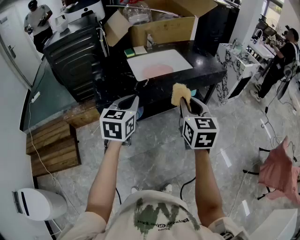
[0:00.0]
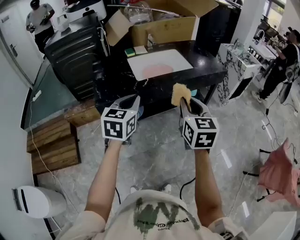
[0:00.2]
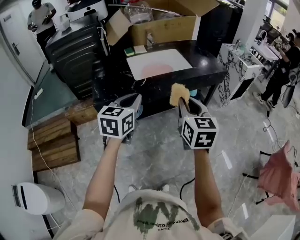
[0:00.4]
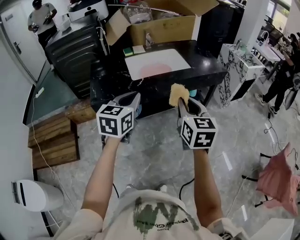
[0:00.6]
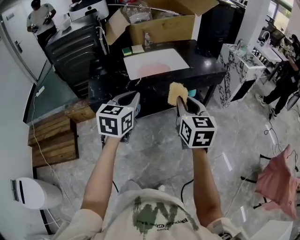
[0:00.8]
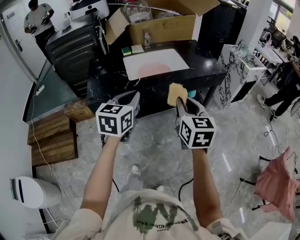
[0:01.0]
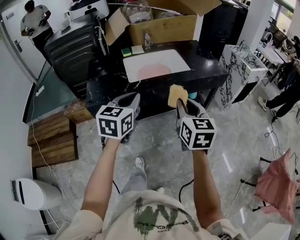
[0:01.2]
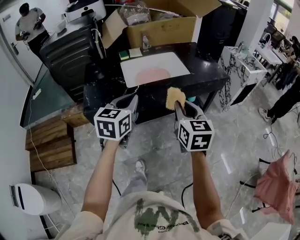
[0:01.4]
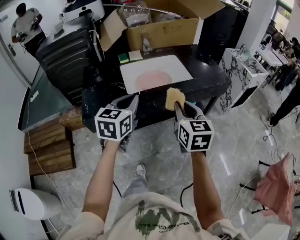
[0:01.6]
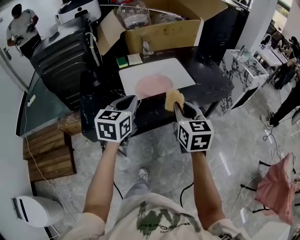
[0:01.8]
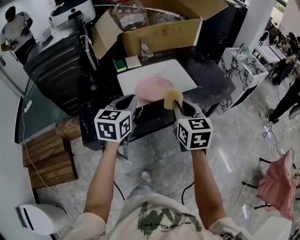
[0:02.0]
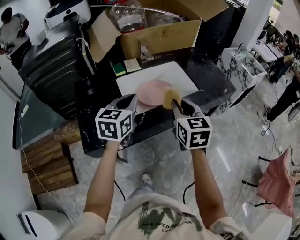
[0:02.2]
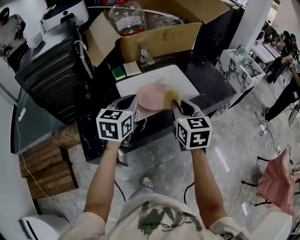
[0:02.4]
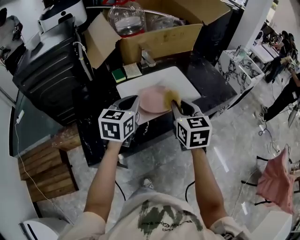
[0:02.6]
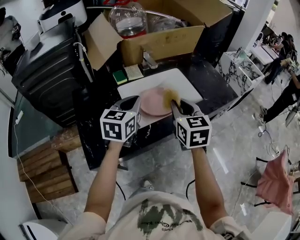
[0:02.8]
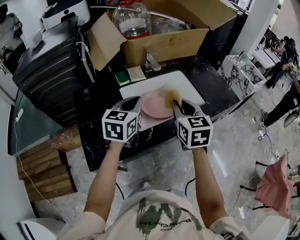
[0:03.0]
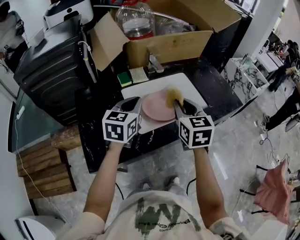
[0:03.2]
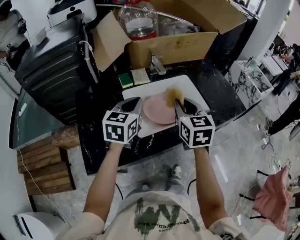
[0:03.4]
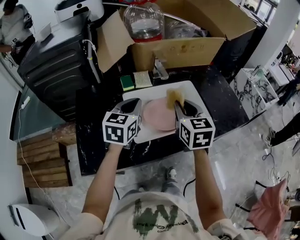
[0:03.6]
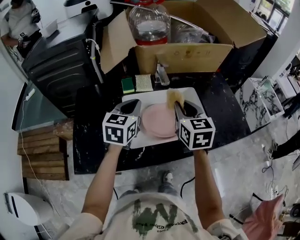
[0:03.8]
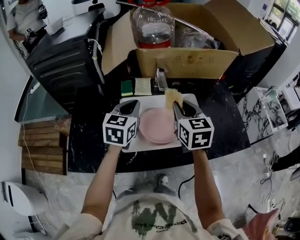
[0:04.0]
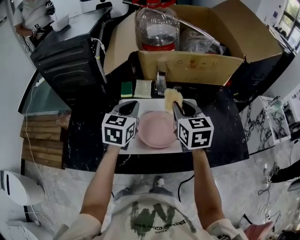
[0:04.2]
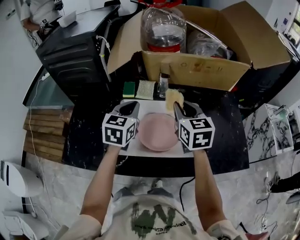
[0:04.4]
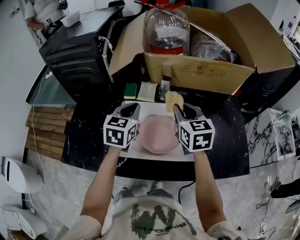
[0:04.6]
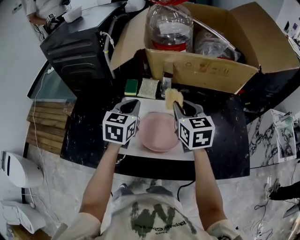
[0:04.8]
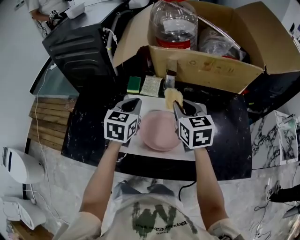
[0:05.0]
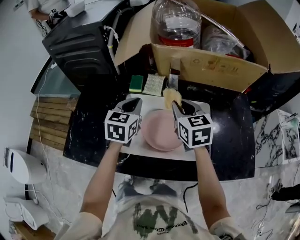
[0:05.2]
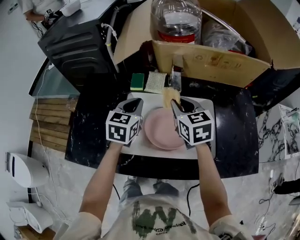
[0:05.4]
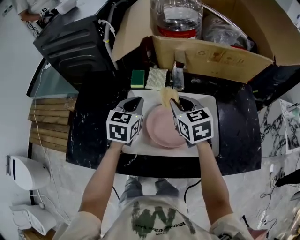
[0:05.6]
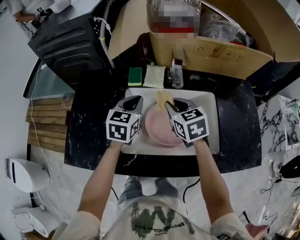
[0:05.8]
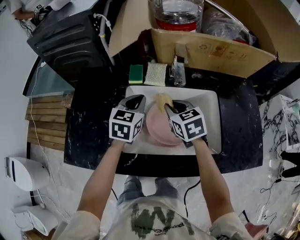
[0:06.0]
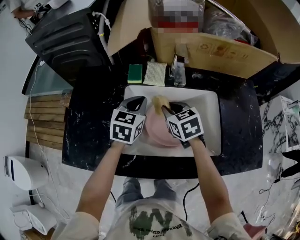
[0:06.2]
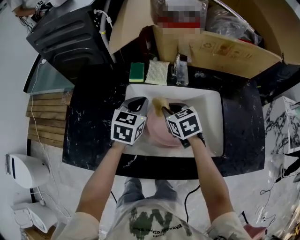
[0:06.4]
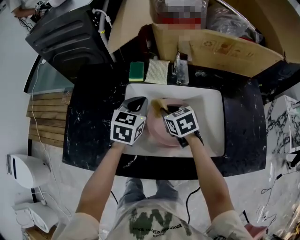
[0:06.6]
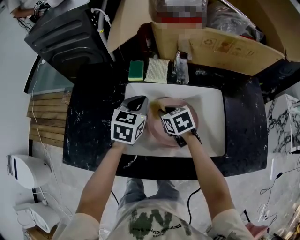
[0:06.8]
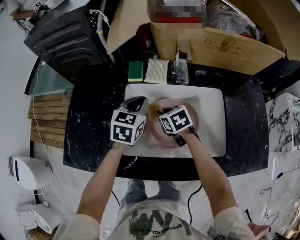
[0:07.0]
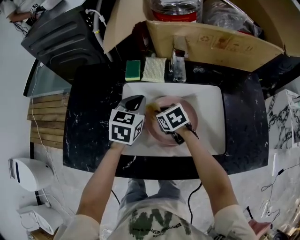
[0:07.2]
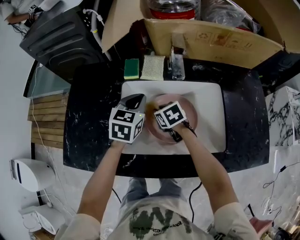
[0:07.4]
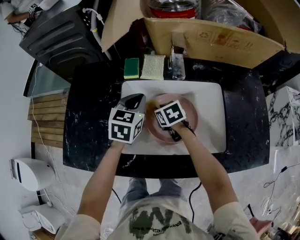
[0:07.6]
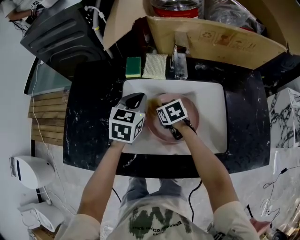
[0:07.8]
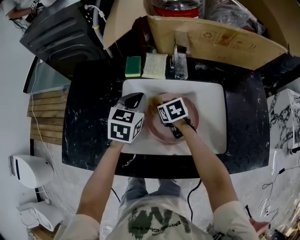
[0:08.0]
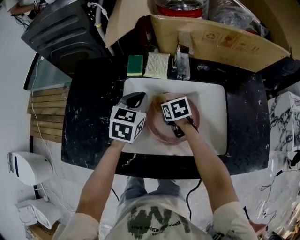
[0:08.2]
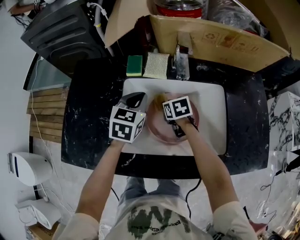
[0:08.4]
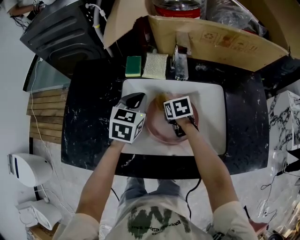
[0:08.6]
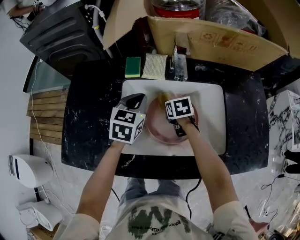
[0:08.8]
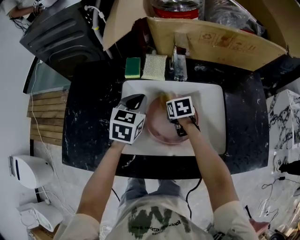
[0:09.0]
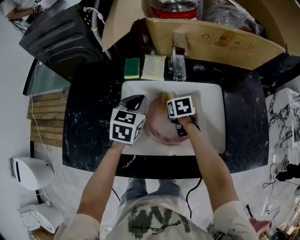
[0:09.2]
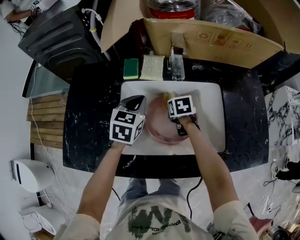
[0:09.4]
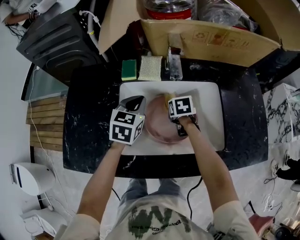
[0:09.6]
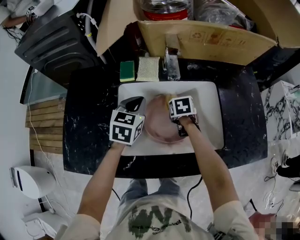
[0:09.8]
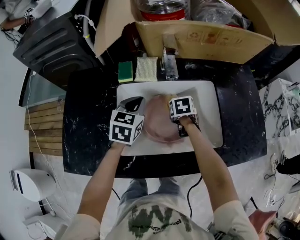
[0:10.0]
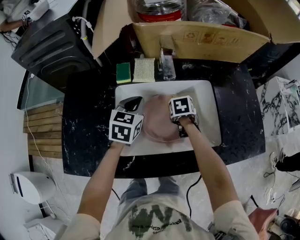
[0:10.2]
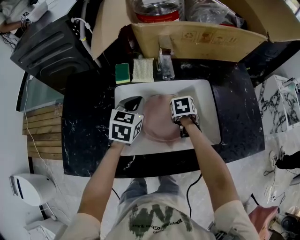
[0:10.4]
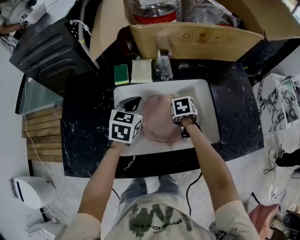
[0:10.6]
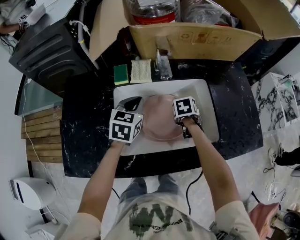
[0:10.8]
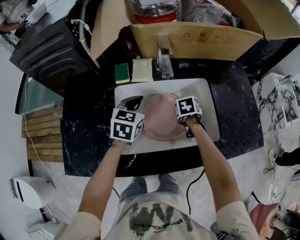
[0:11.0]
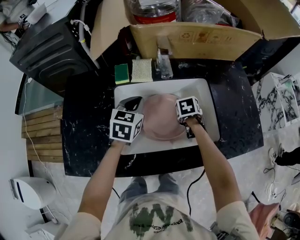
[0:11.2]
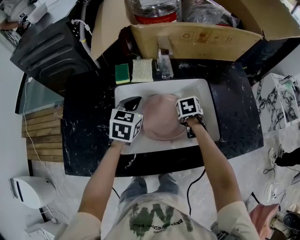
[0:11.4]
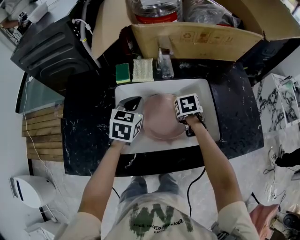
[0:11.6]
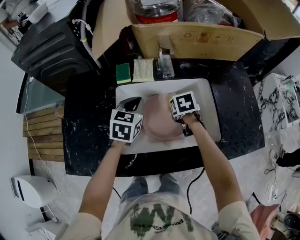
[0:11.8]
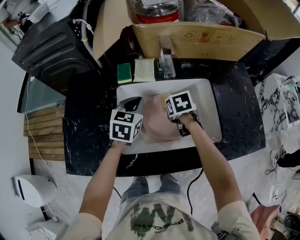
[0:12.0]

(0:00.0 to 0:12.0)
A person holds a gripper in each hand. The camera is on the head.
0:00.0 - 0:01.6: The left gripper shifts roughly 15 cm forward and to the right, while the right gripper moves forward, roughly 10 cm.
0:01.6 - 0:03.0: The two grippers go about 25 cm forward and to the left.
0:03.0 - 0:04.4: The left gripper ends up about 15 cm from where it was, and turns by approximately 30 degrees. Meanwhile the right gripper ends up about 20 cm from where it was, and turns by roughly 30 degrees.
0:04.4 - 0:06.0: The left gripper heads downward, covering roughly 10 cm, while the right gripper travels downward and to the left by roughly 15 cm, and turns by about 20 degrees.
0:06.0 - 0:07.6: The right gripper travels downward by about 15 cm, and changes its angle by some 20 degrees.
0:07.6 - 0:09.0: The right gripper travels to the right by some 5 cm.
0:09.0 - 0:10.4: The right gripper heads to the right, covering approximately 10 cm.
0:10.4 - 0:12.0: The right gripper goes some 5 cm upward.

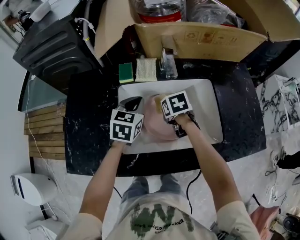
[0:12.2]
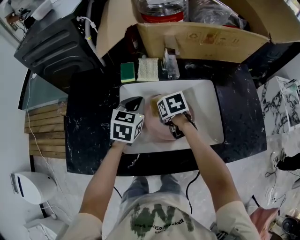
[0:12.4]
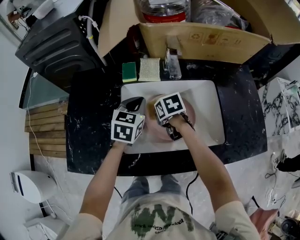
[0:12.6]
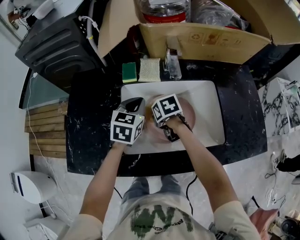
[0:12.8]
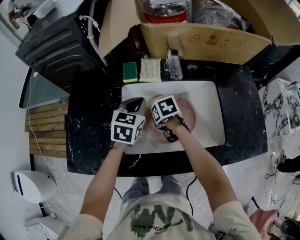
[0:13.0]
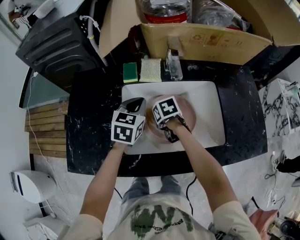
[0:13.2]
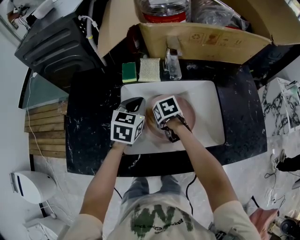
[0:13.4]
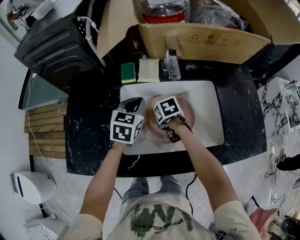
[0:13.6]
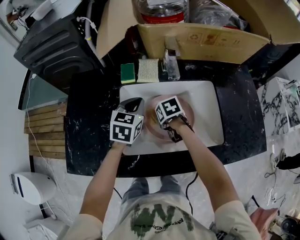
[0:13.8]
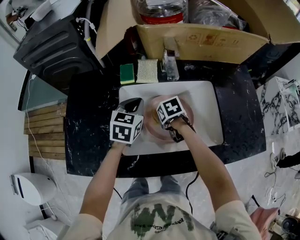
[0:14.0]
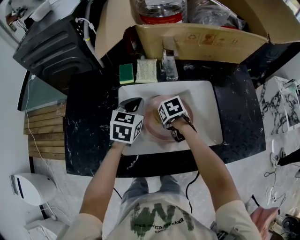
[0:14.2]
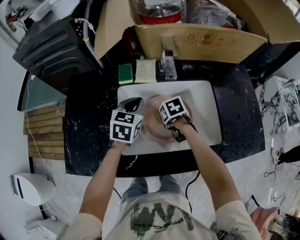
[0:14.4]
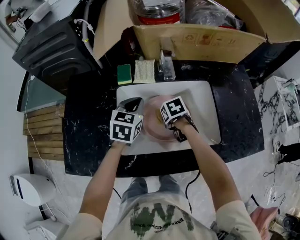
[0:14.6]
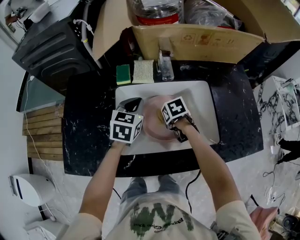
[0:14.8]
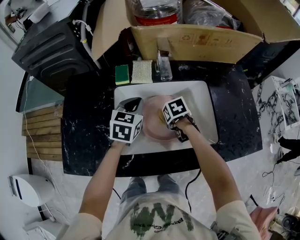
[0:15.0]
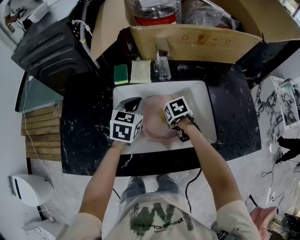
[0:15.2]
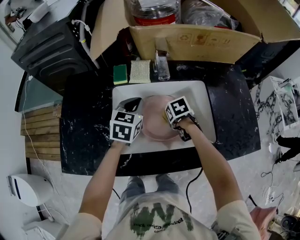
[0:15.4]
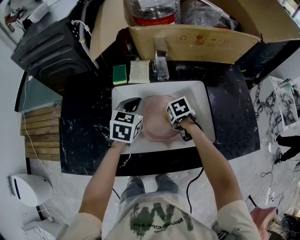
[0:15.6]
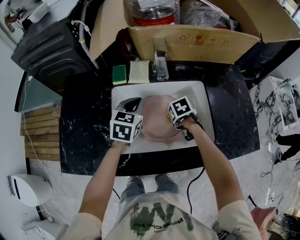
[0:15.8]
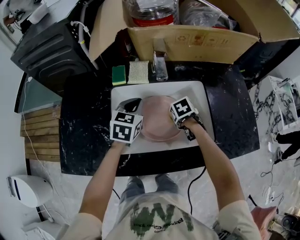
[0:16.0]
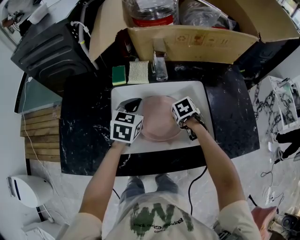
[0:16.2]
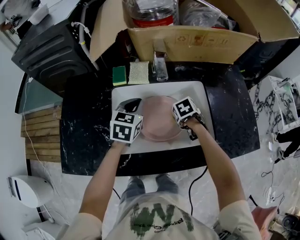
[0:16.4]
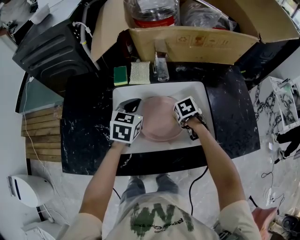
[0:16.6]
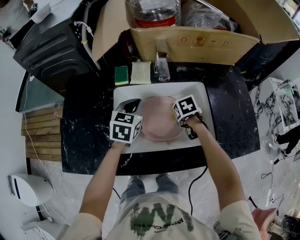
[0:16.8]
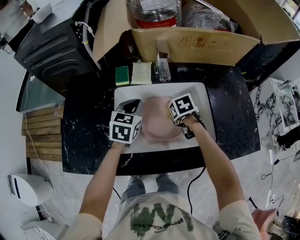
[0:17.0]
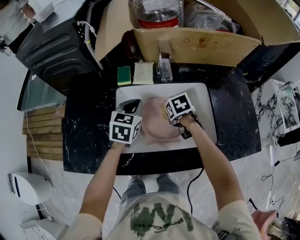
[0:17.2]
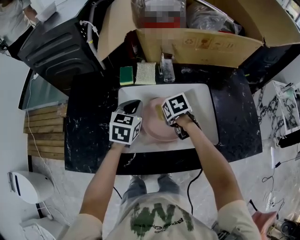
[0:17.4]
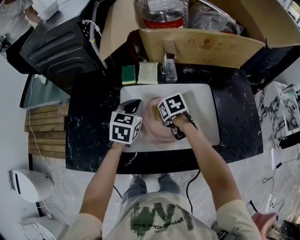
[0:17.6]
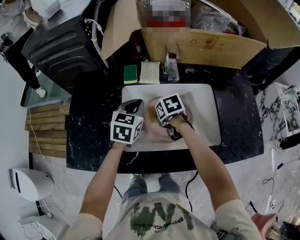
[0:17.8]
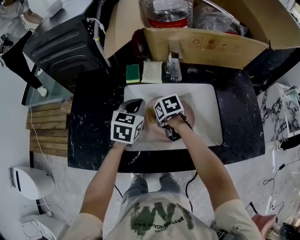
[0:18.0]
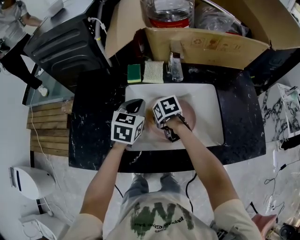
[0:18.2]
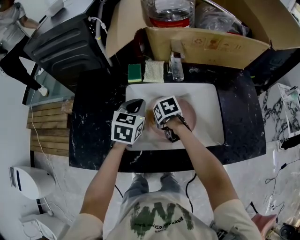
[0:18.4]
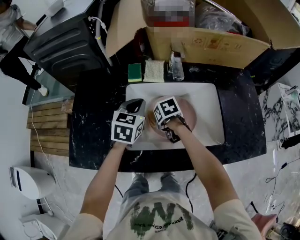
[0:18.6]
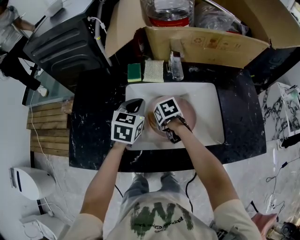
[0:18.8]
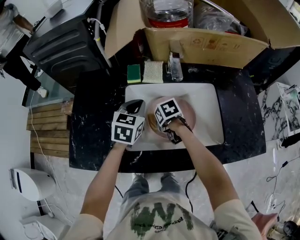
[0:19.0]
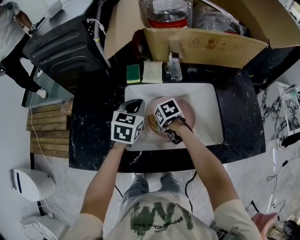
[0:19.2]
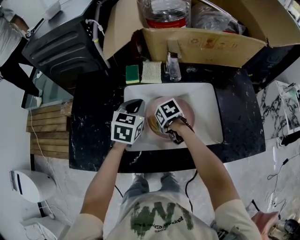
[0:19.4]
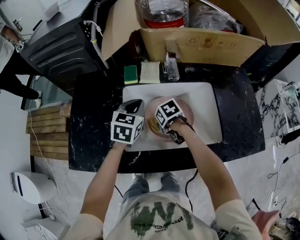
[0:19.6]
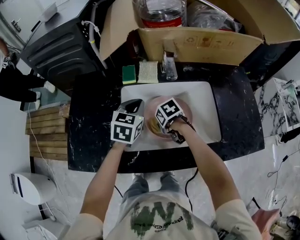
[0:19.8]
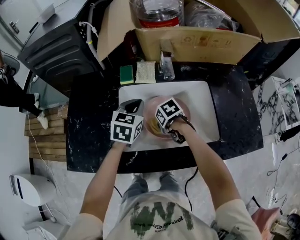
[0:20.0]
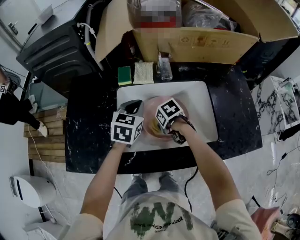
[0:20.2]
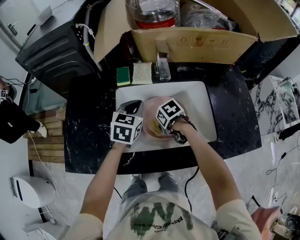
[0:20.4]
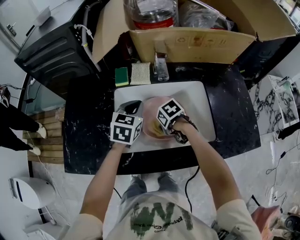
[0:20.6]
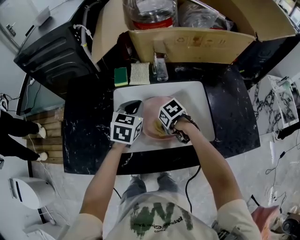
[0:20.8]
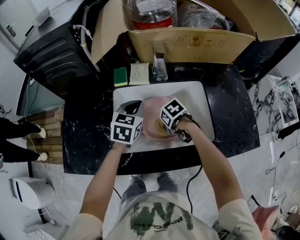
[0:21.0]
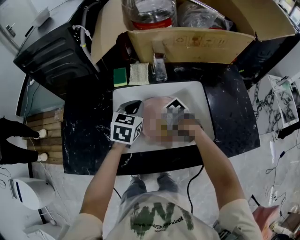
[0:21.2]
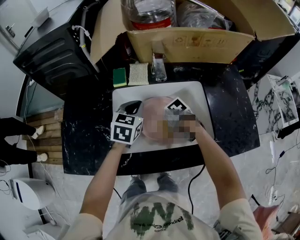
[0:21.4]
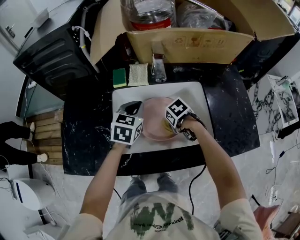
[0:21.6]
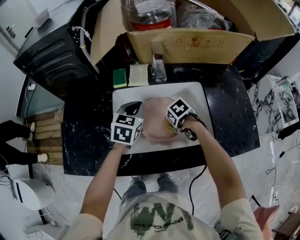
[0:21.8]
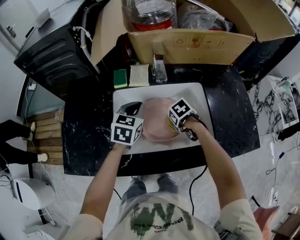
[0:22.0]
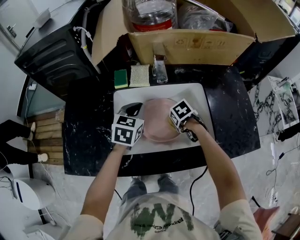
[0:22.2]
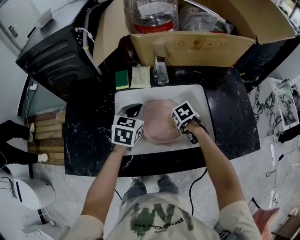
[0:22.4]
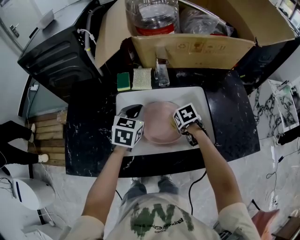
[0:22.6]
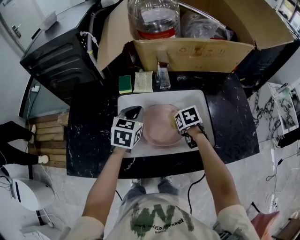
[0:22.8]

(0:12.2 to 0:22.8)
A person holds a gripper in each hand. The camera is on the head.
0:12.2 - 0:13.8: The right gripper goes roughly 5 cm downward.
0:13.8 - 0:15.2: The right gripper travels to the right by about 5 cm.
0:15.2 - 0:16.8: The right gripper ends up roughly 5 cm from where it was.
0:16.8 - 0:18.2: The right gripper shifts roughly 15 cm to the left.
0:18.2 - 0:19.8: The right gripper shifts by roughly 5 cm.
0:19.8 - 0:21.2: The right gripper is displaced to the right by about 5 cm.
0:21.2 - 0:22.8: The right gripper shifts by roughly 10 cm, and rotates roughly 30 degrees.

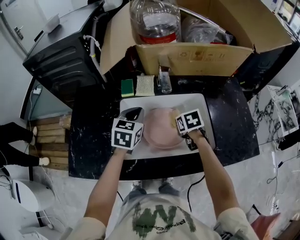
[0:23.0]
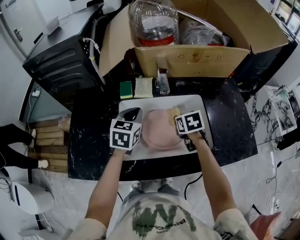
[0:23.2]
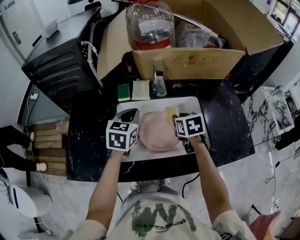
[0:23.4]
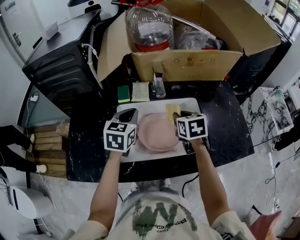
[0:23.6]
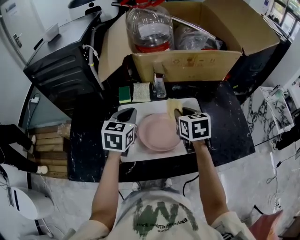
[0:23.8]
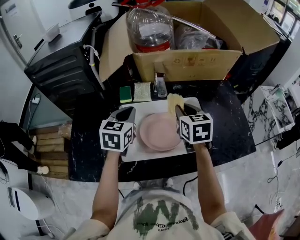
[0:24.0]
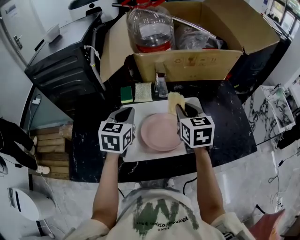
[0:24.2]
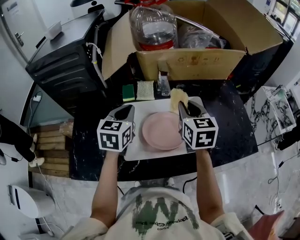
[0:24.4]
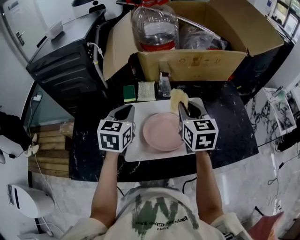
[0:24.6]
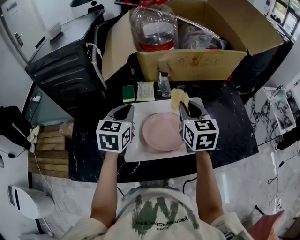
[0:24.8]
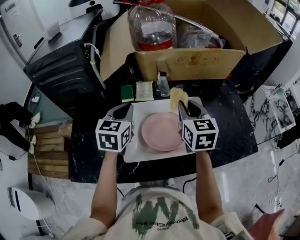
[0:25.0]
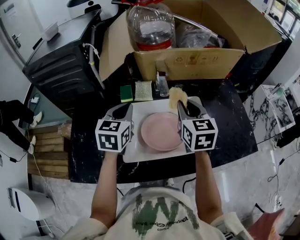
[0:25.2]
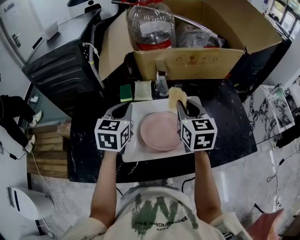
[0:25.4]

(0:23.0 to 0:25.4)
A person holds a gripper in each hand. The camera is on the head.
0:23.0 - 0:24.2: The right gripper goes about 20 cm upward, and points its fingers about 40 degrees further upward. The left gripper shifts some 5 cm upward.
0:24.2 - 0:25.4: There are only small adjustments of the grippers.
